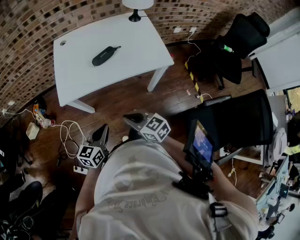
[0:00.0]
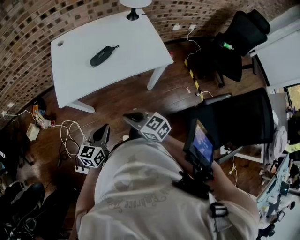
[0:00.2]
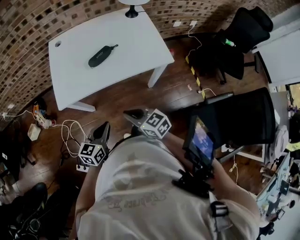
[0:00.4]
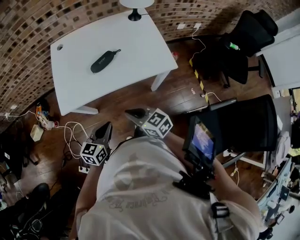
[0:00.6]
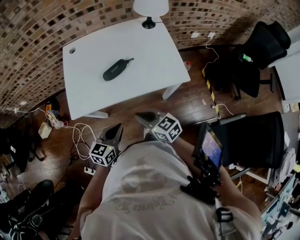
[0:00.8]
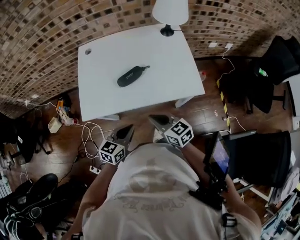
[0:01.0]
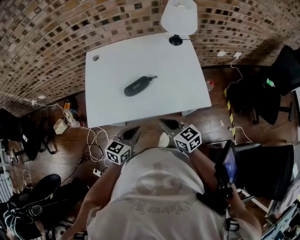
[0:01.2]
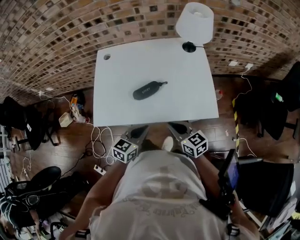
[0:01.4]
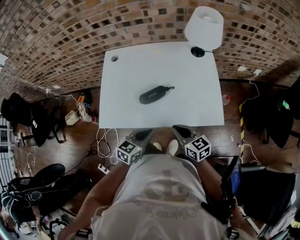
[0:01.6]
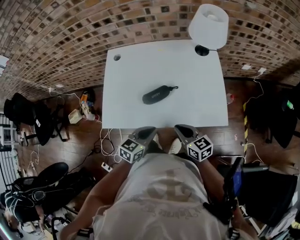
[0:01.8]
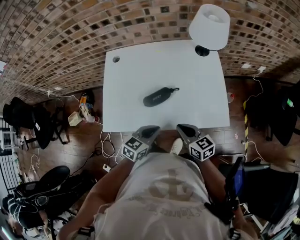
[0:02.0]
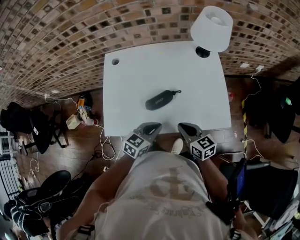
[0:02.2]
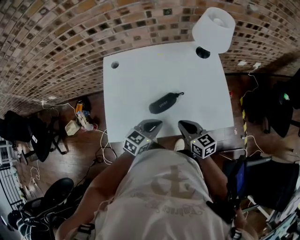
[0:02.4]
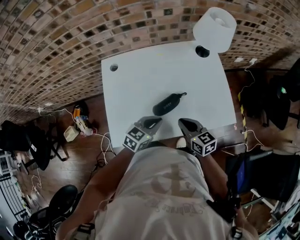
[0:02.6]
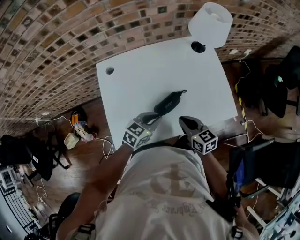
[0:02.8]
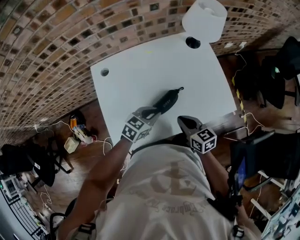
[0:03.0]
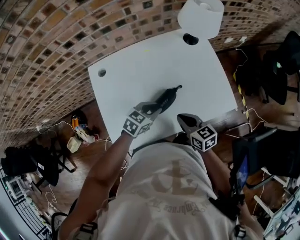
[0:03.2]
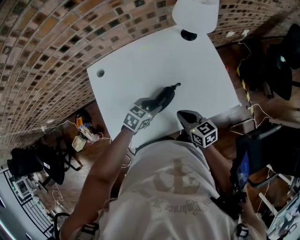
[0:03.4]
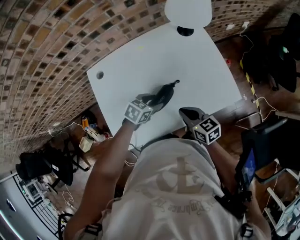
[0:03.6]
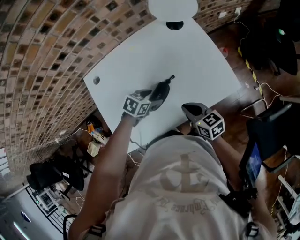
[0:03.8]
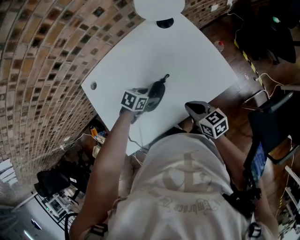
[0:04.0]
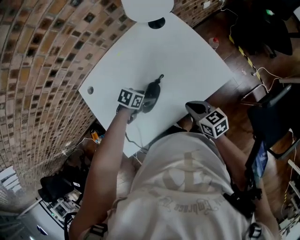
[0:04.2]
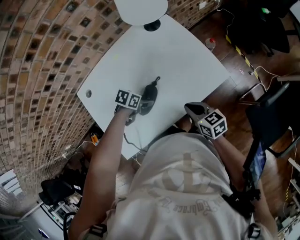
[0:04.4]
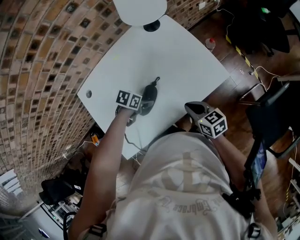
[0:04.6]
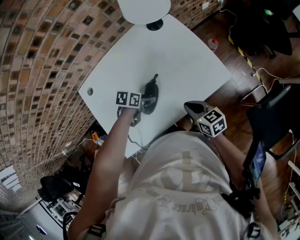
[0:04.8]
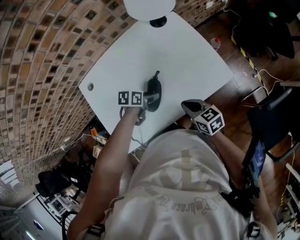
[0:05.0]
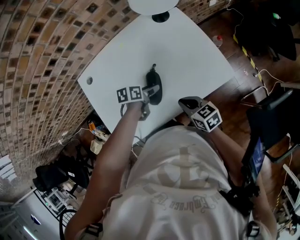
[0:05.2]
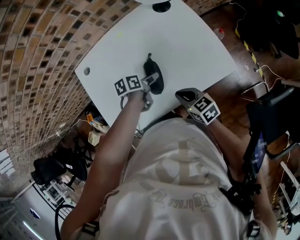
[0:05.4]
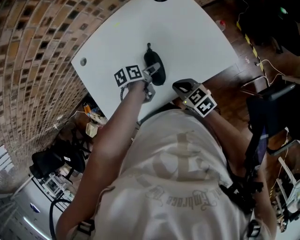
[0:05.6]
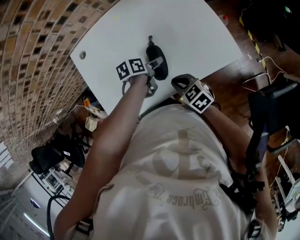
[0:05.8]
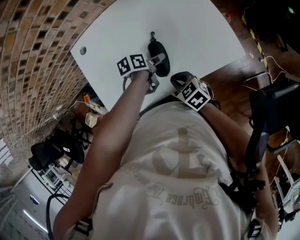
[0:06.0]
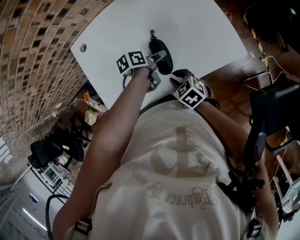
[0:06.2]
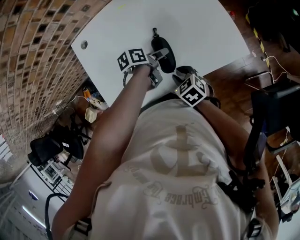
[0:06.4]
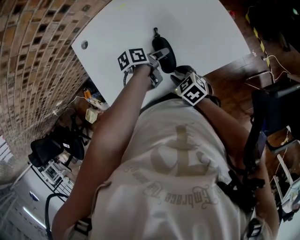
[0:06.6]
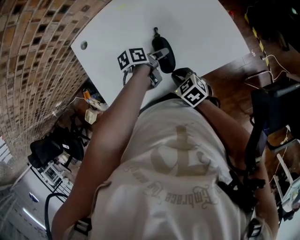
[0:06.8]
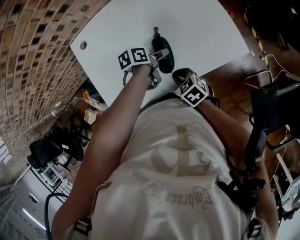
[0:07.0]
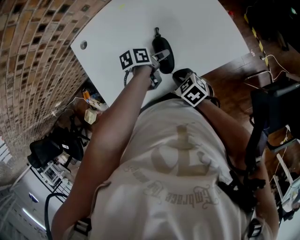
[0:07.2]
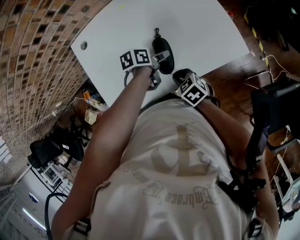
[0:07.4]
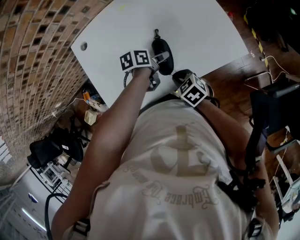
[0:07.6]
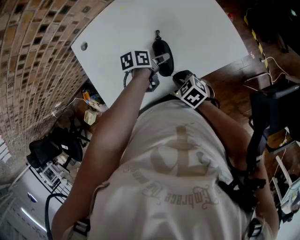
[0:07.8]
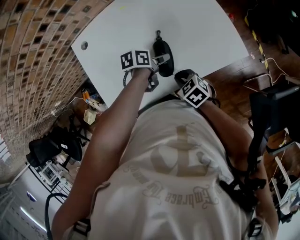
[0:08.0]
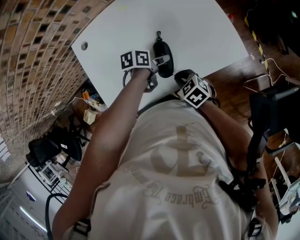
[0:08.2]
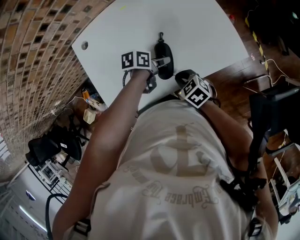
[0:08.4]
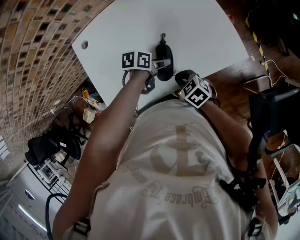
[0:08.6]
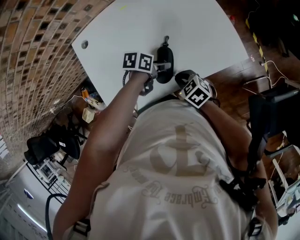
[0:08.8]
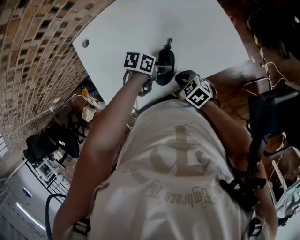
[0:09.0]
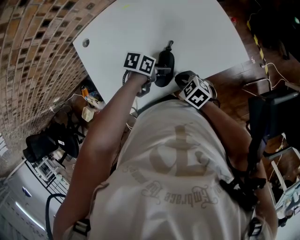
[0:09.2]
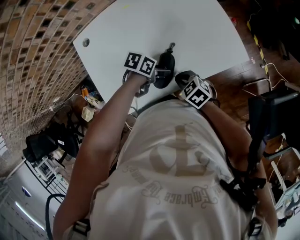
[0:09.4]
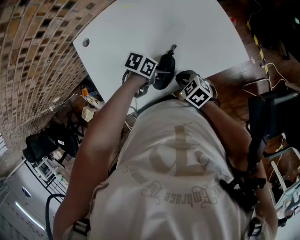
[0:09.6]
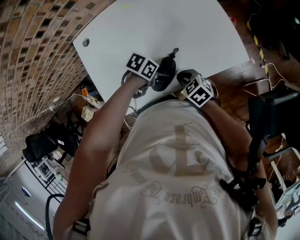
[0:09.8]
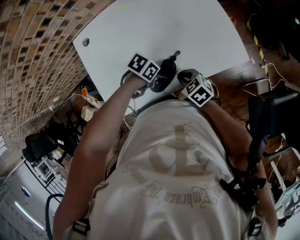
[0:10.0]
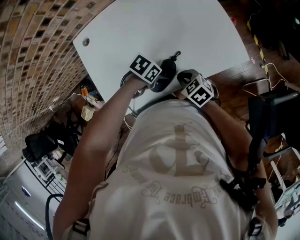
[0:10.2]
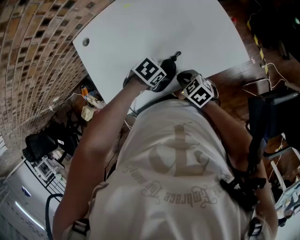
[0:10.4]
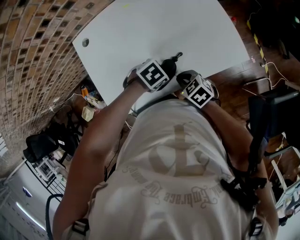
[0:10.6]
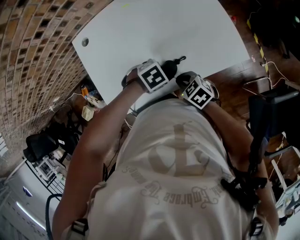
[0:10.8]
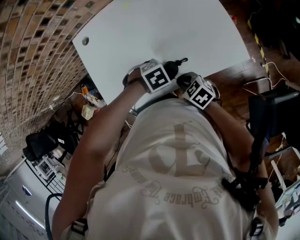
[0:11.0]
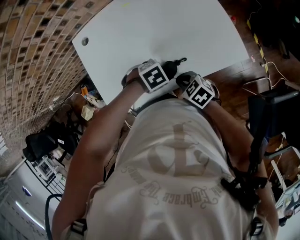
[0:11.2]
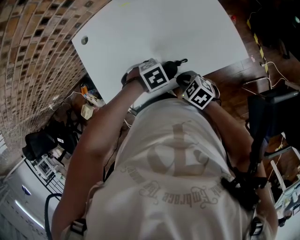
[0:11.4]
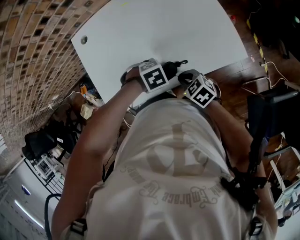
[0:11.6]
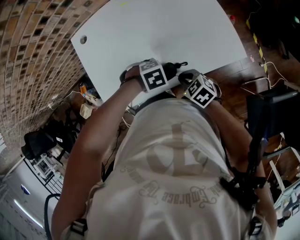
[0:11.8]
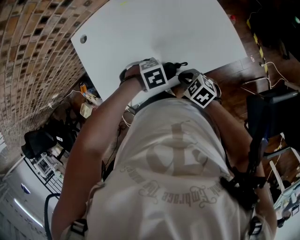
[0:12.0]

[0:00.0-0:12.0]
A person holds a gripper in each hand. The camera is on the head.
0.0 to 1.6 s: Both grippers move forward and to the right, roughly 25 cm.
1.6 to 3.0 s: The left gripper shifts approximately 20 cm forward and to the left, and swivels some 30 degrees, while the right gripper heads to the left and forward, covering roughly 15 cm, and swivels approximately 20 degrees.
3.0 to 4.4 s: The right gripper moves some 10 cm, while the left gripper moves downward, some 10 cm, rotates approximately 40 degrees, and opens up.
4.4 to 6.0 s: The right gripper shifts by about 10 cm, and changes its angle by about 30 degrees. The left gripper twists some 40 degrees counterclockwise, seen from behind.
6.0 to 7.6 s: The right gripper opens, then closes again.
7.6 to 9.0 s: The left gripper turns by approximately 30 degrees.
9.0 to 10.4 s: The left gripper changes its angle by approximately 40 degrees.
10.4 to 12.0 s: The left gripper changes its angle by approximately 30 degrees.

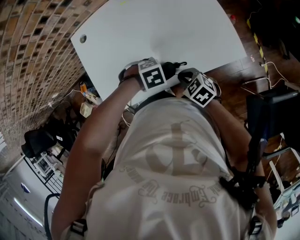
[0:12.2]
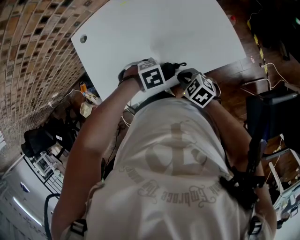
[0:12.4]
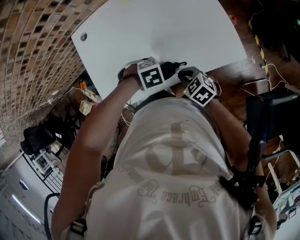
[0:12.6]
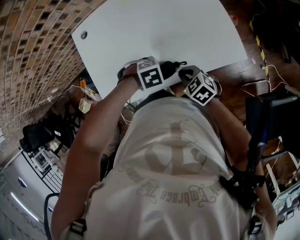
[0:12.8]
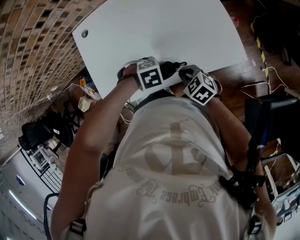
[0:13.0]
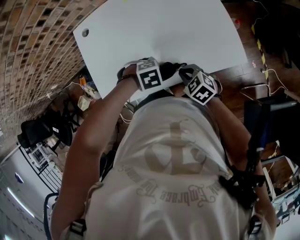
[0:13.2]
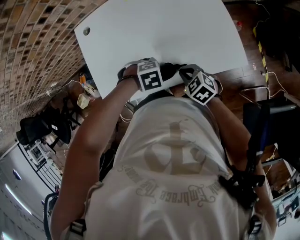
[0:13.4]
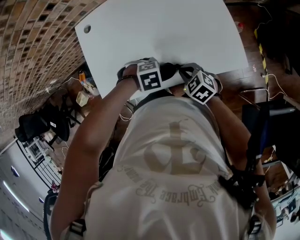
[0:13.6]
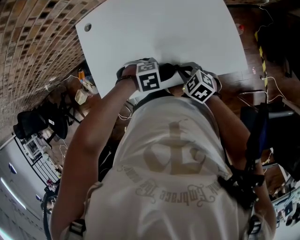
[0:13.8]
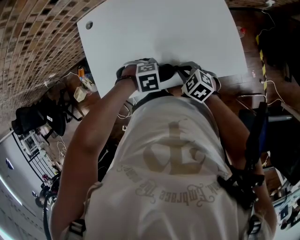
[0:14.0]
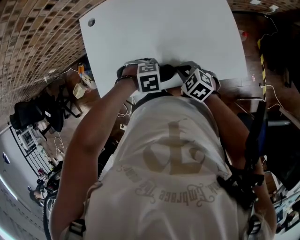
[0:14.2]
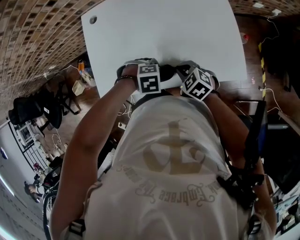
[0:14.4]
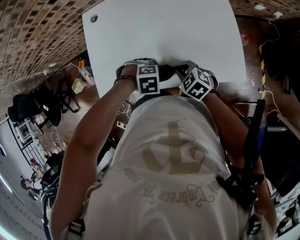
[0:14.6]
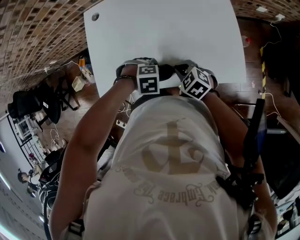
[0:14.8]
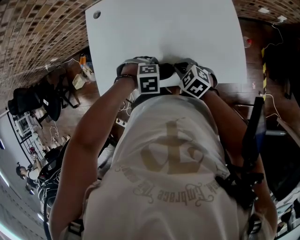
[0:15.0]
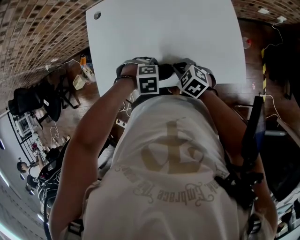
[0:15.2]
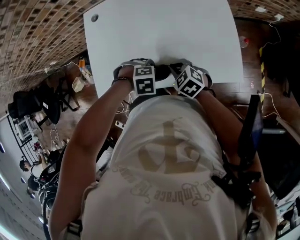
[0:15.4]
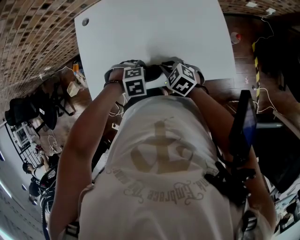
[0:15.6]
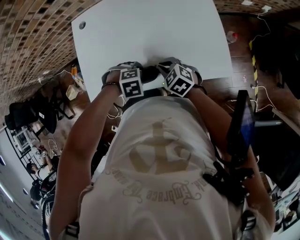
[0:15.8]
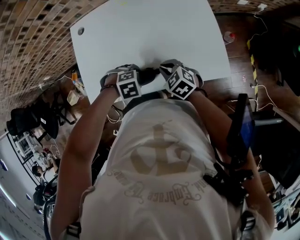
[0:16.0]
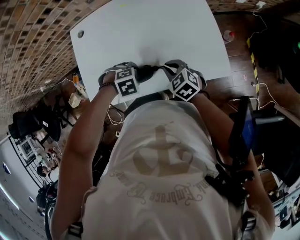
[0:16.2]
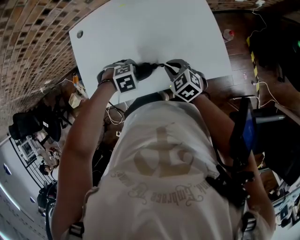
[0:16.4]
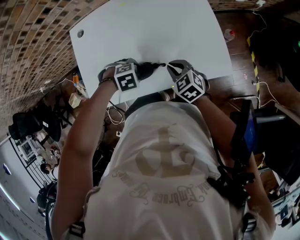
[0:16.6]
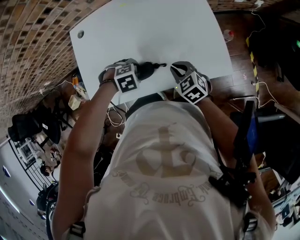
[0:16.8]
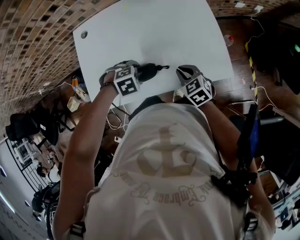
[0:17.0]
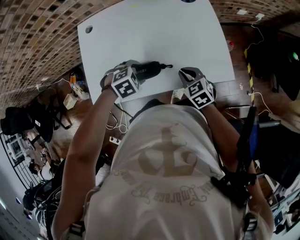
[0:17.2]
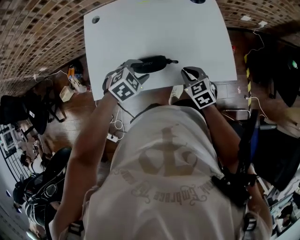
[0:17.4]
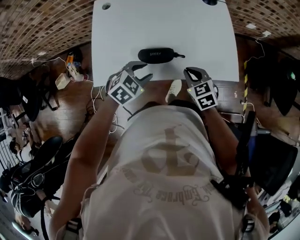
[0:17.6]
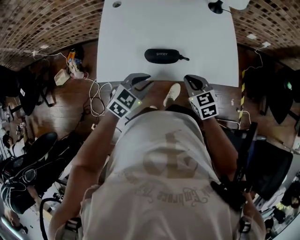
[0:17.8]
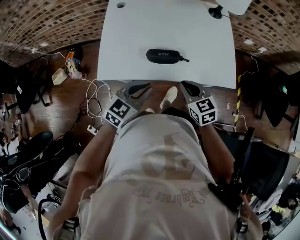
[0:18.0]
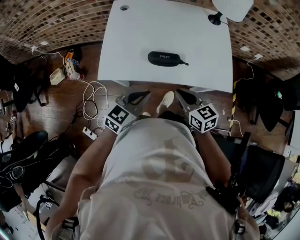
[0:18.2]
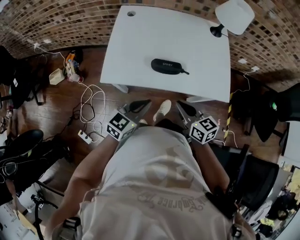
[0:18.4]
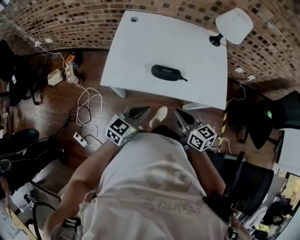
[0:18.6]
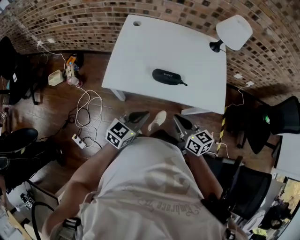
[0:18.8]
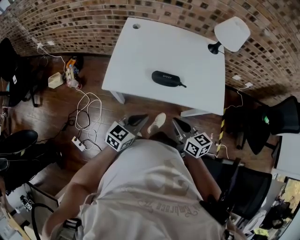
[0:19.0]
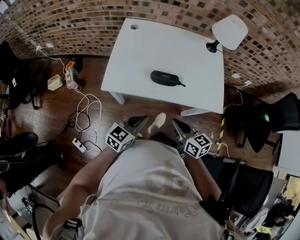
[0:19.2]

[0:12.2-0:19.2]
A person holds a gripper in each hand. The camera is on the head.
12.2 to 13.6 s: The grippers make only small movements.
13.6 to 15.0 s: The grippers make only small movements.
15.0 to 16.4 s: The right gripper changes place by about 5 cm.
16.4 to 17.8 s: The right gripper ends up some 10 cm from where it was. Meanwhile the left gripper ends up approximately 15 cm from where it was, tips its fingers upward by roughly 50 degrees, and closes its fingers.
17.8 to 19.2 s: The right gripper moves backward and upward, approximately 15 cm, and changes its angle by roughly 30 degrees. Meanwhile the left gripper heads backward, covering some 10 cm, and rotates about 30 degrees.

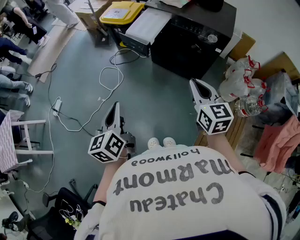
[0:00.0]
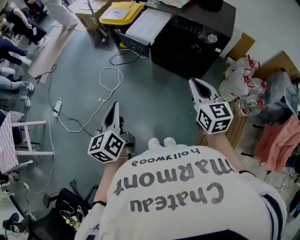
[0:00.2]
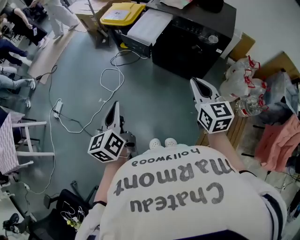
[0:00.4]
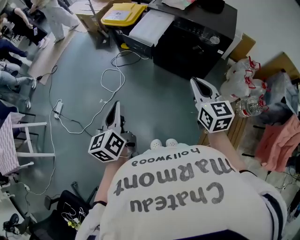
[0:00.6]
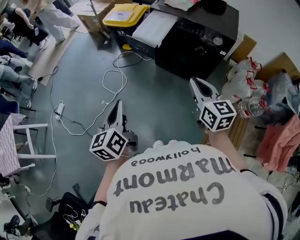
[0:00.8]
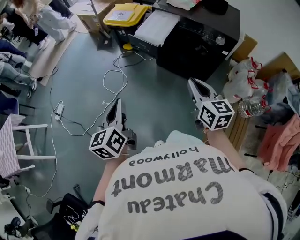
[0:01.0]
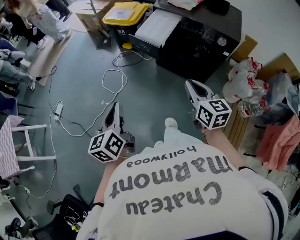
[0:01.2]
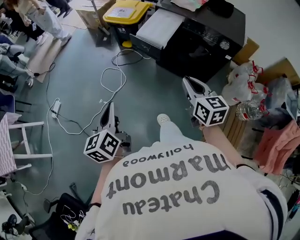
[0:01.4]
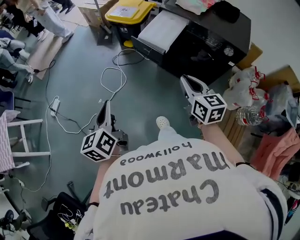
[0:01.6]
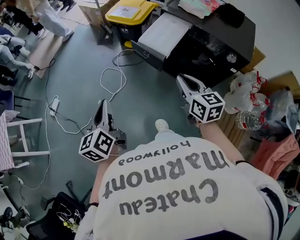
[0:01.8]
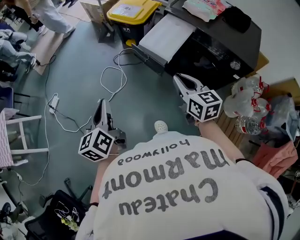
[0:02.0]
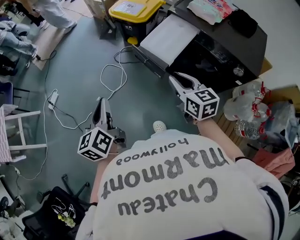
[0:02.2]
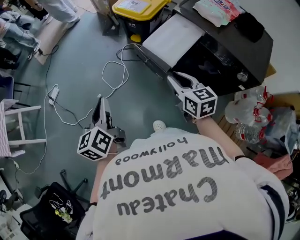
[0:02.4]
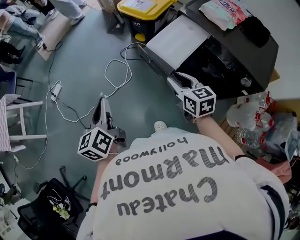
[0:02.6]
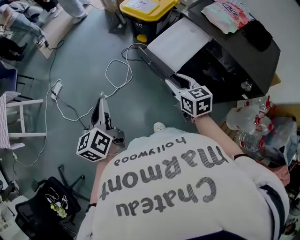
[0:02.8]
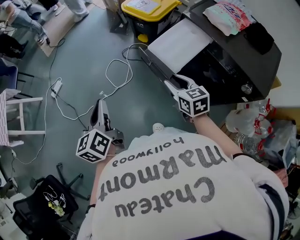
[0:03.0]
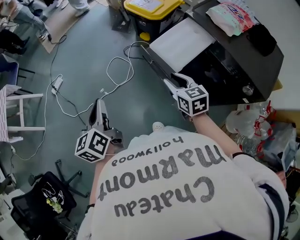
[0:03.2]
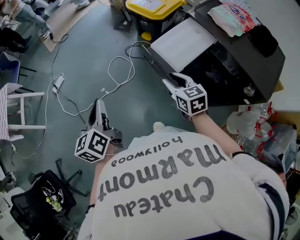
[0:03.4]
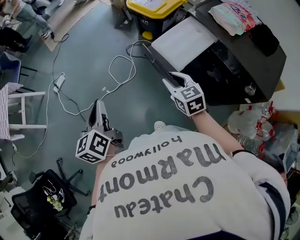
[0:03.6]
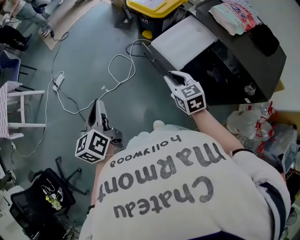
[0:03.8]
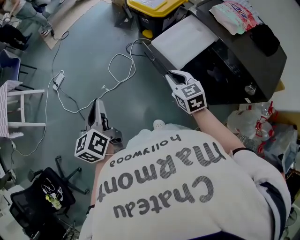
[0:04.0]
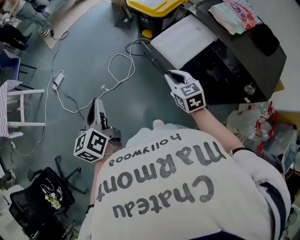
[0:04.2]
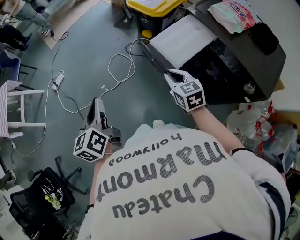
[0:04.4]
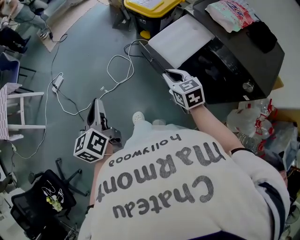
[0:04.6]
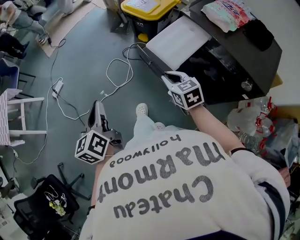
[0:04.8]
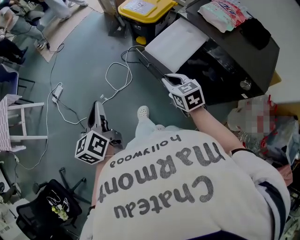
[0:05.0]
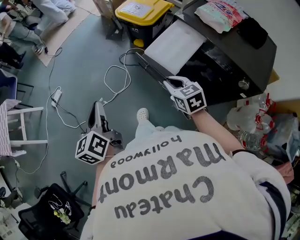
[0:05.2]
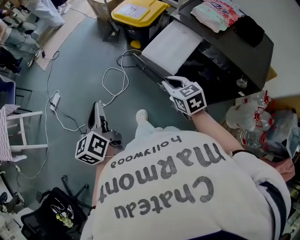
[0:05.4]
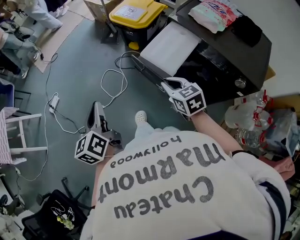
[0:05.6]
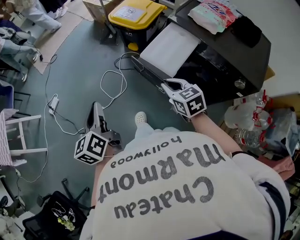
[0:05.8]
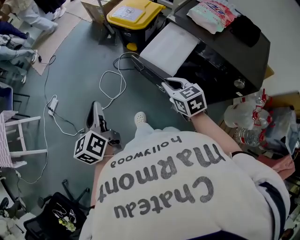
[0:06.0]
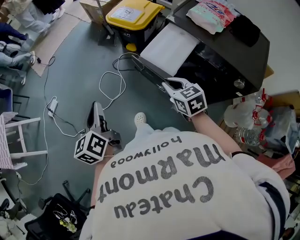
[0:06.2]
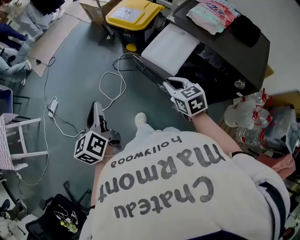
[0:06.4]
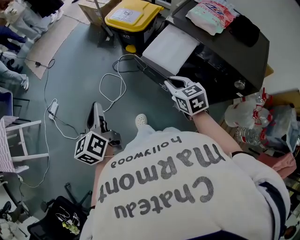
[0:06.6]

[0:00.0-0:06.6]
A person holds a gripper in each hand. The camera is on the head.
0.0 to 1.6 s: The left gripper is displaced to the left and forward by some 15 cm. Meanwhile the right gripper moves forward and to the left, about 15 cm.
1.6 to 3.2 s: The left gripper heads forward, covering about 10 cm. Meanwhile the right gripper shifts approximately 20 cm forward and downward, changes its angle by roughly 30 degrees, and opens.
3.2 to 5.0 s: The right gripper closes.
5.0 to 6.6 s: The left gripper heads forward, covering approximately 5 cm.
